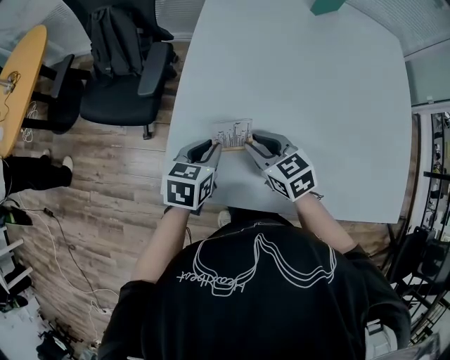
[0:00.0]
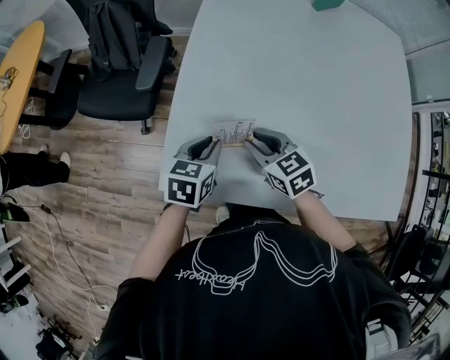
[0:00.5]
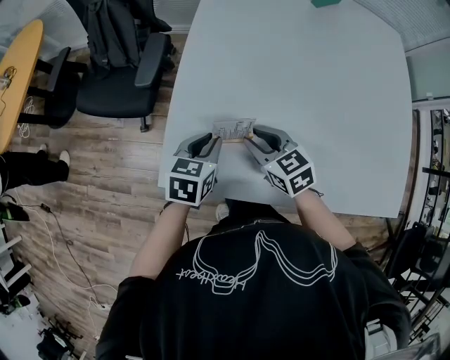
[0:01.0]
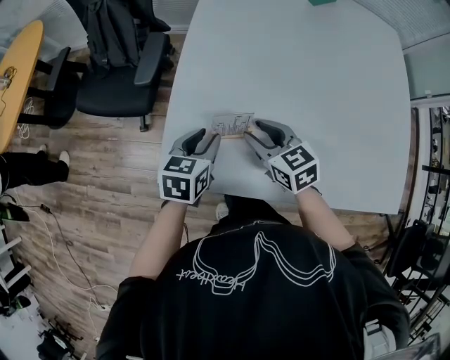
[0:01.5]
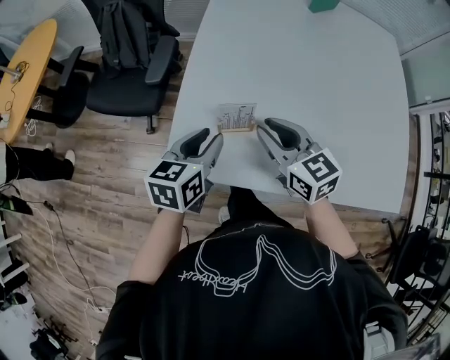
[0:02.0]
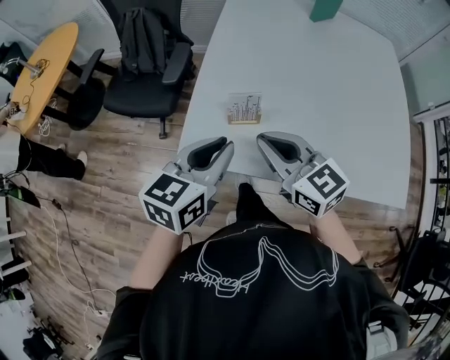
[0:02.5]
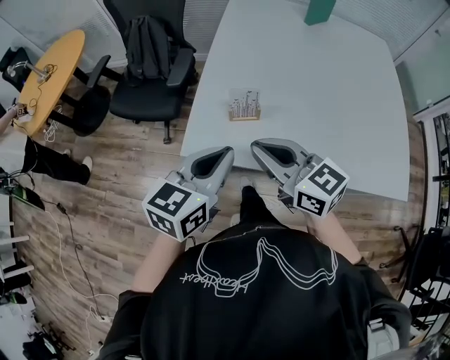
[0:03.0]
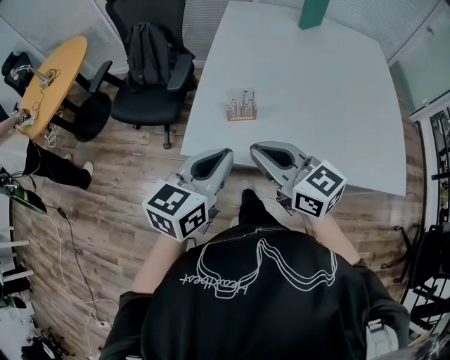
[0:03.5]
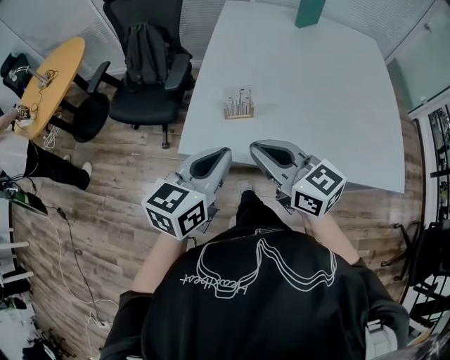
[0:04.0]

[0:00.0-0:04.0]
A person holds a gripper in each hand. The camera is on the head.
0:00.0 to 0:02.0: The two grippers go approximately 10 cm upward.
0:02.0 to 0:04.0: The grippers both shift backward and upward by approximately 20 cm. The left gripper closes, while the right gripper closes up.

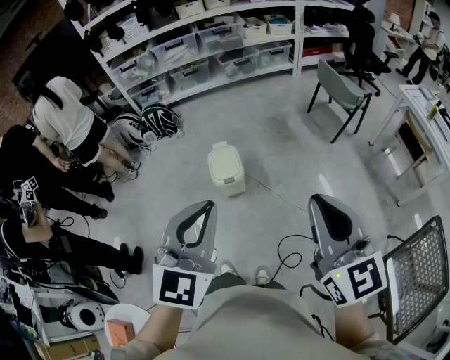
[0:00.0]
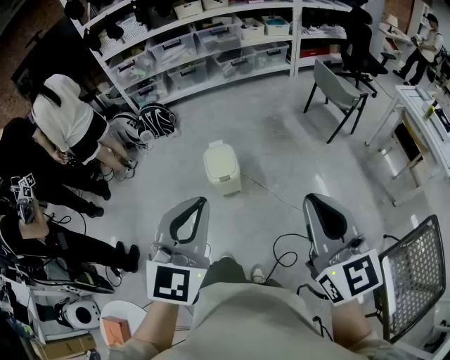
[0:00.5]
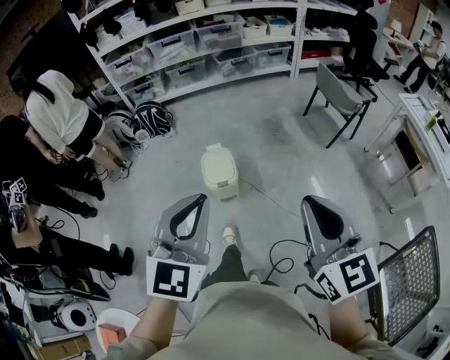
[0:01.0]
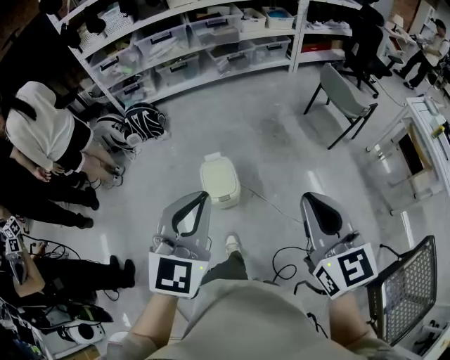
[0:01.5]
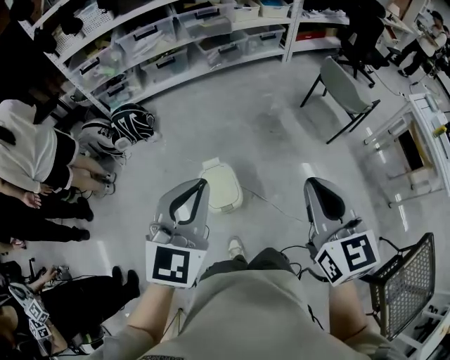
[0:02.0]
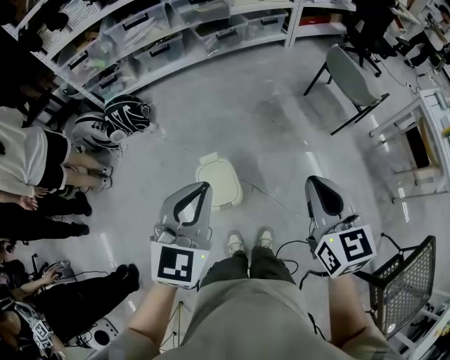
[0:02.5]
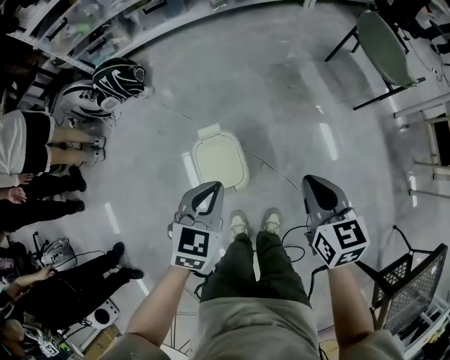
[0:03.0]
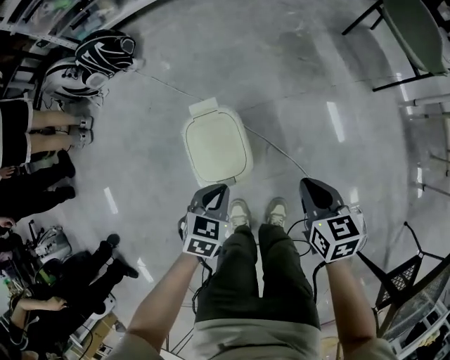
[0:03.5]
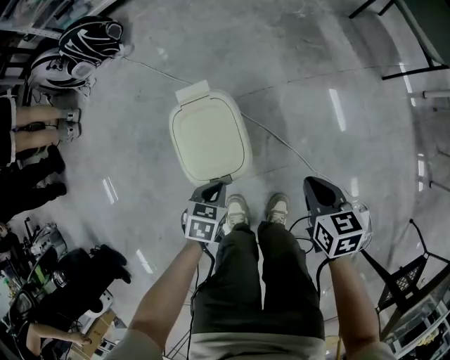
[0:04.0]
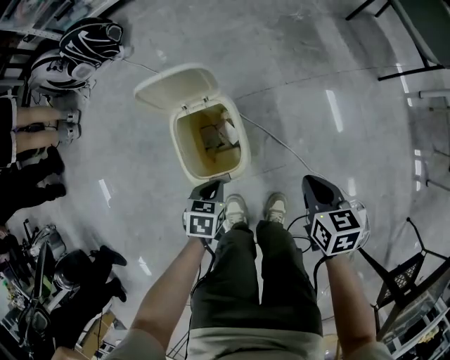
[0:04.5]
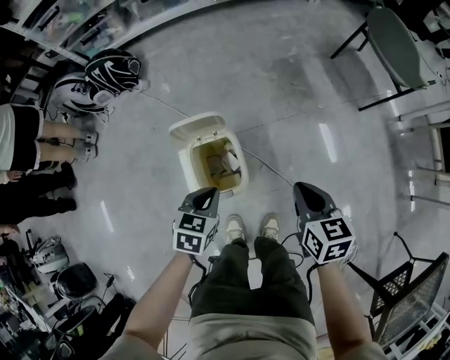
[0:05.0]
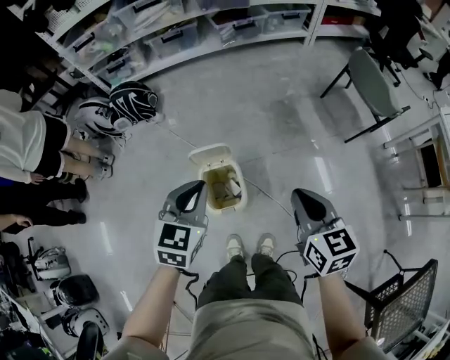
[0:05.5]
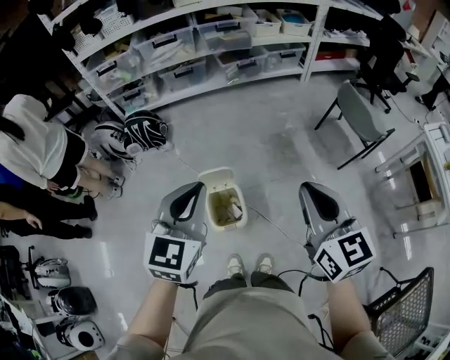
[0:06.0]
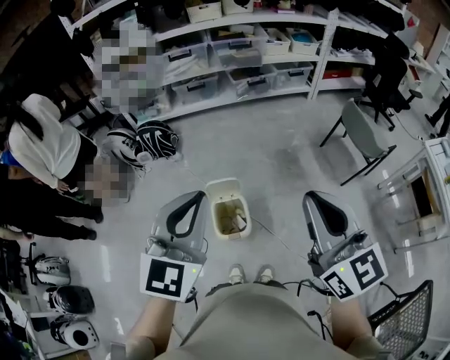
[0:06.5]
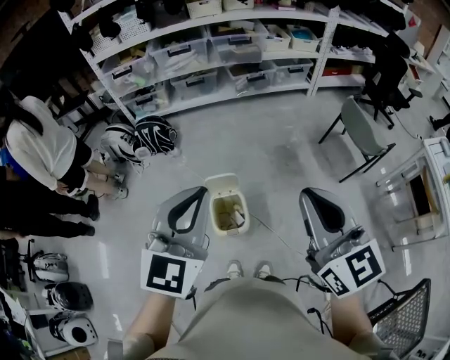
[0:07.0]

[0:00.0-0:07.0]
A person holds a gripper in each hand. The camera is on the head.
0:00.0 to 0:02.0: The two grippers go roughly 35 cm forward.
0:02.0 to 0:03.5: The two grippers go some 50 cm downward. The right gripper swivels some 40 degrees. Meanwhile the left gripper points its fingers approximately 40 degrees further downward.
0:03.5 to 0:05.0: The left gripper reaches some 15 cm downward, then returns; the right gripper goes approximately 10 cm upward.
0:05.0 to 0:07.0: The two grippers go roughly 50 cm upward. The left gripper points its fingers some 40 degrees further upward. Meanwhile the right gripper angles its fingers upward, by roughly 40 degrees.

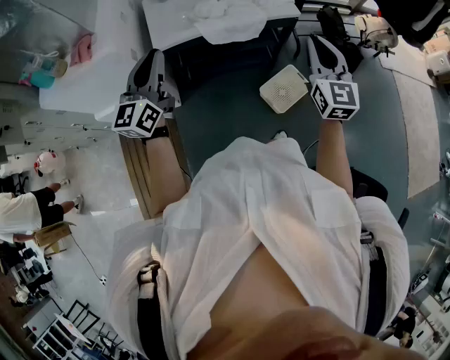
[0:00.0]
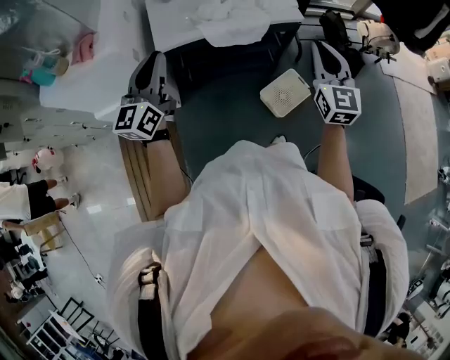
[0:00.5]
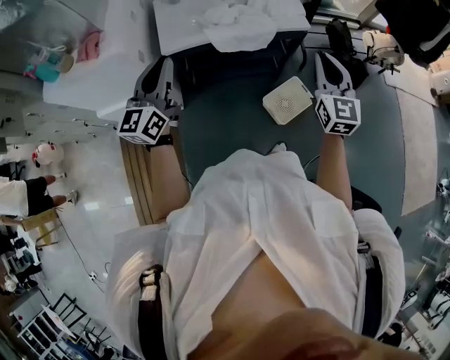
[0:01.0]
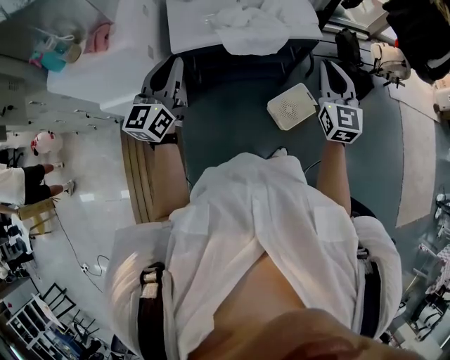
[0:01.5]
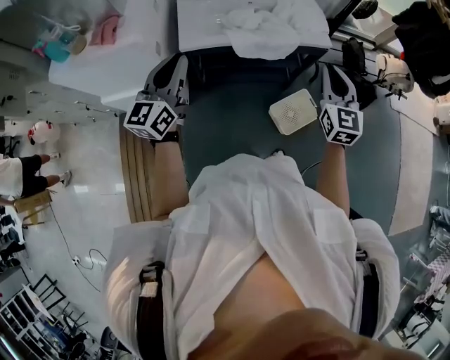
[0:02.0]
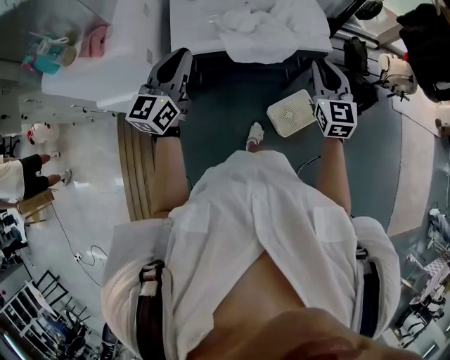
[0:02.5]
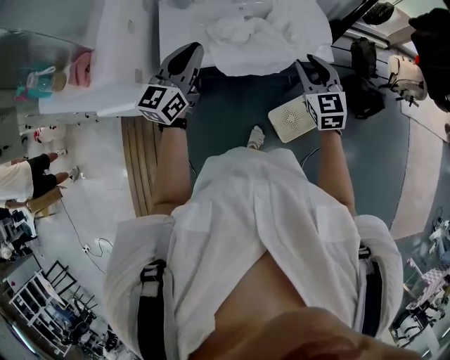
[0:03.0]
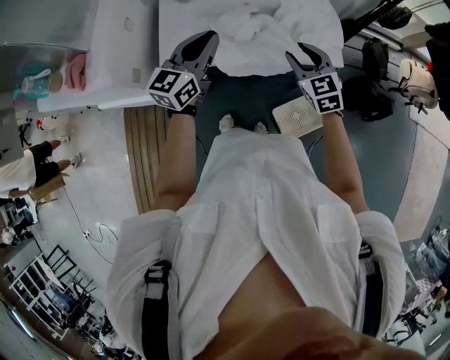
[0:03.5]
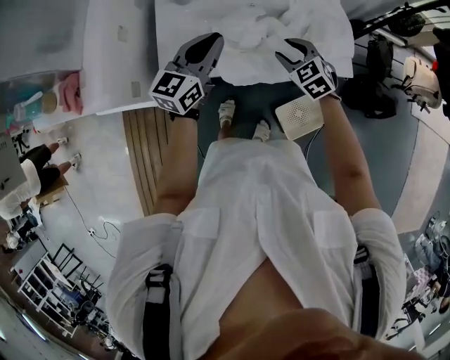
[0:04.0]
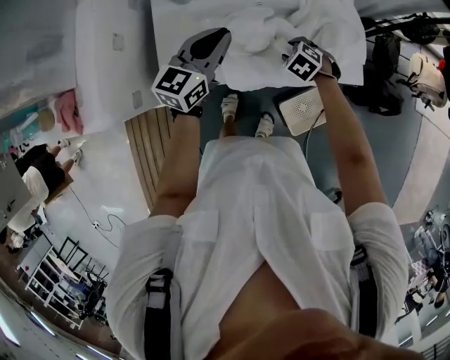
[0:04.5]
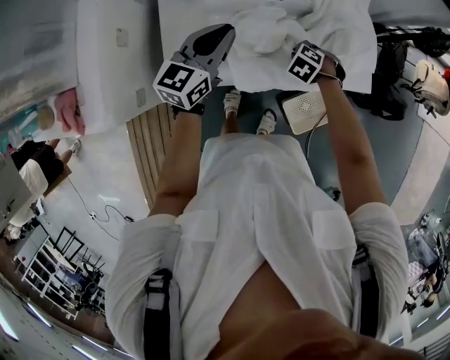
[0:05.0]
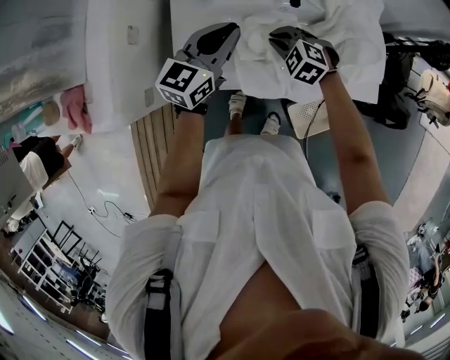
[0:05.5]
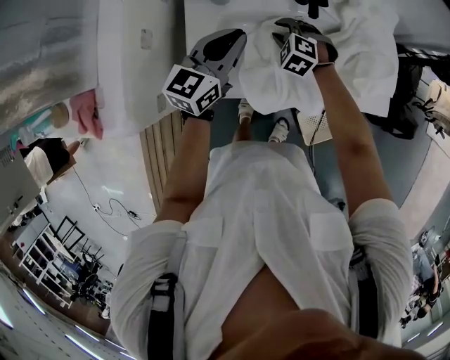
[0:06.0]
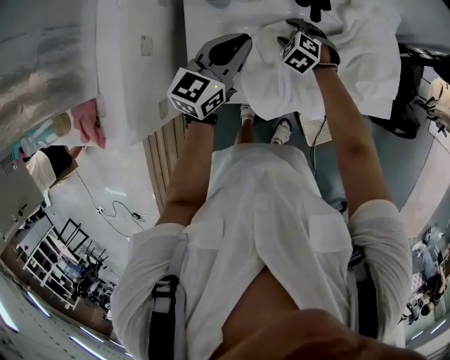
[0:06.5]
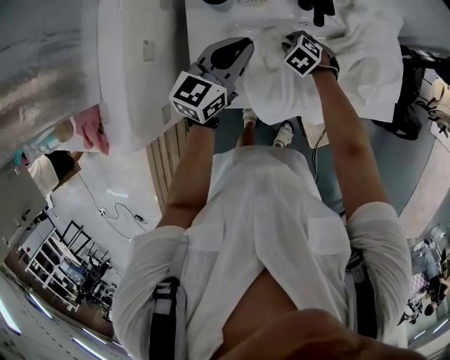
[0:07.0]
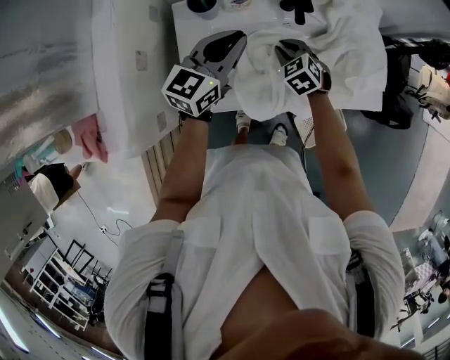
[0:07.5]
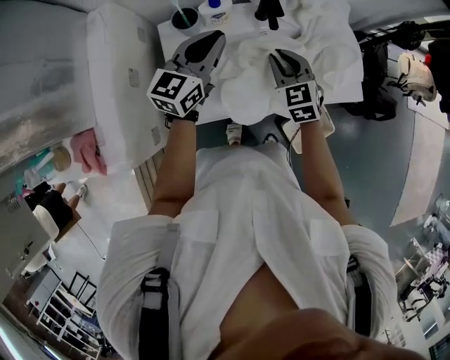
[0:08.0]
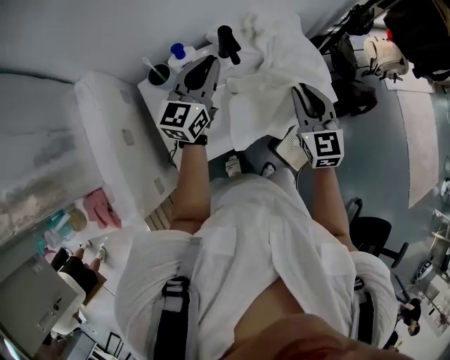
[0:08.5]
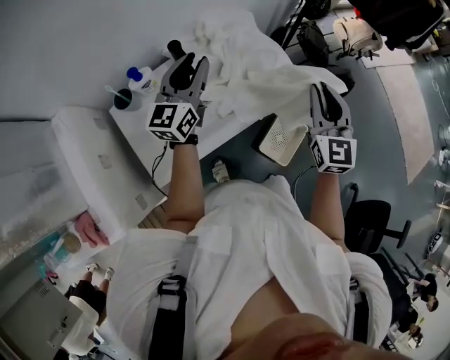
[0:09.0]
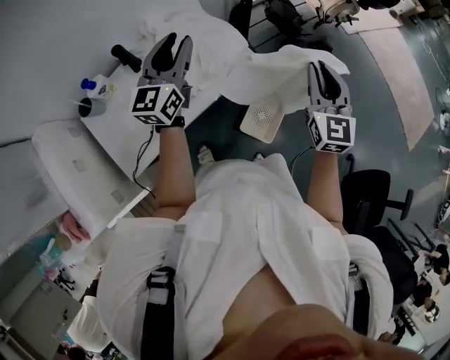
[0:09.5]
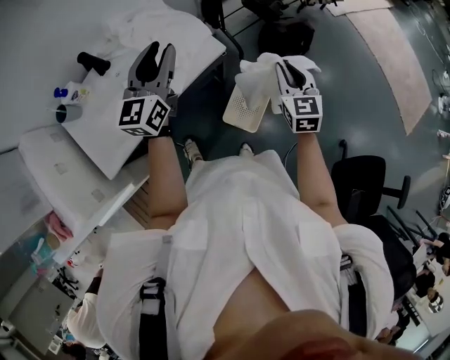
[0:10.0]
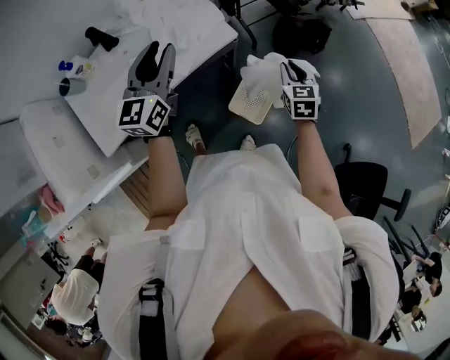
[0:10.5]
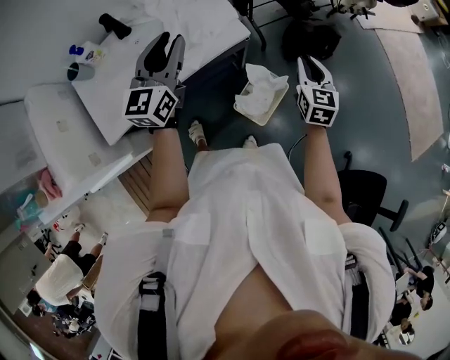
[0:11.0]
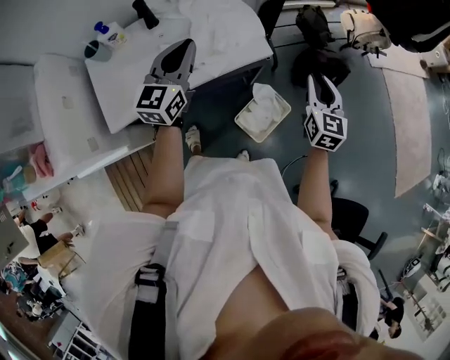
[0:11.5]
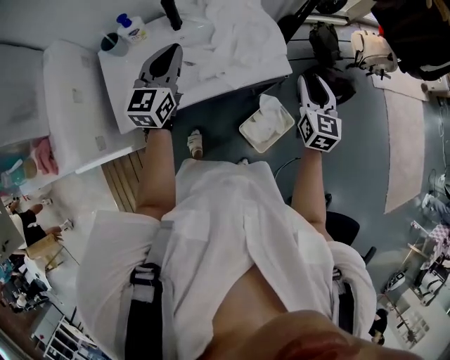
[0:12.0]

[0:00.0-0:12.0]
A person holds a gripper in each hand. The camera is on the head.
0:00.0 to 0:02.0: The right gripper moves forward, about 5 cm; the left gripper changes place by about 5 cm.
0:02.0 to 0:04.0: The right gripper shifts about 40 cm forward and downward, tips its fingers downward by roughly 40 degrees, and opens its fingers; the left gripper heads forward, covering roughly 30 cm.
0:04.0 to 0:06.0: The left gripper moves about 15 cm; the right gripper swings up and down, about 15 cm each way, with 2 reversals, swivels approximately 30 degrees, and closes, then reopens.
0:06.0 to 0:08.0: The right gripper moves upward and to the right, approximately 15 cm, turns by some 50 degrees, and opens, then closes again. The left gripper heads upward, covering approximately 5 cm.
0:08.0 to 0:10.0: Both grippers are carried some 50 cm. The left gripper opens its fingers. Meanwhile the right gripper rotates roughly 40 degrees.
0:10.0 to 0:12.0: The two grippers go roughly 20 cm to the left. The left gripper turns by roughly 20 degrees, and closes its fingers.

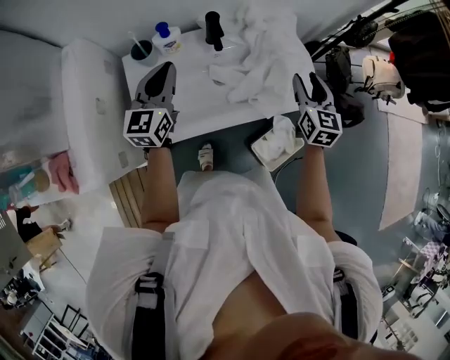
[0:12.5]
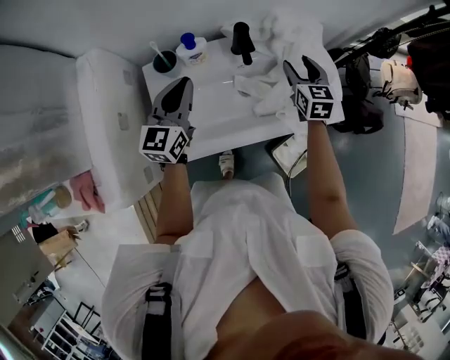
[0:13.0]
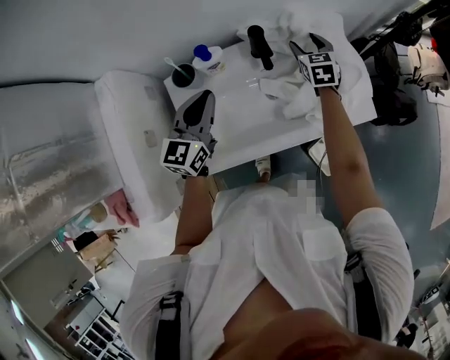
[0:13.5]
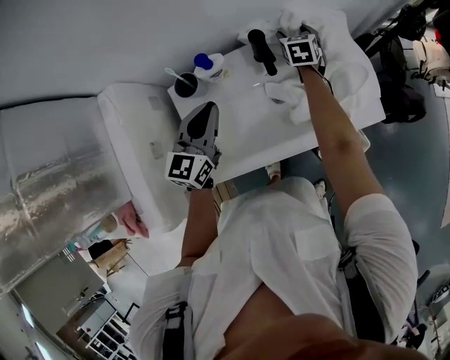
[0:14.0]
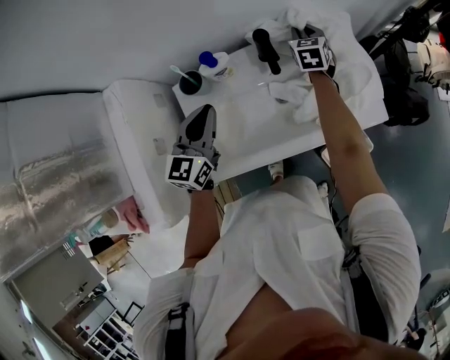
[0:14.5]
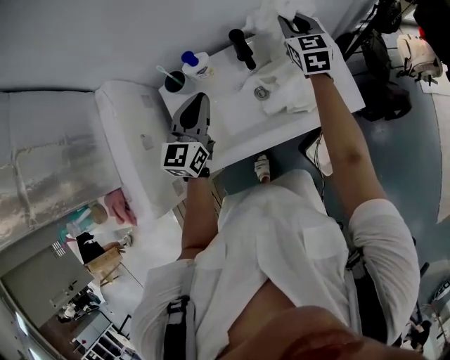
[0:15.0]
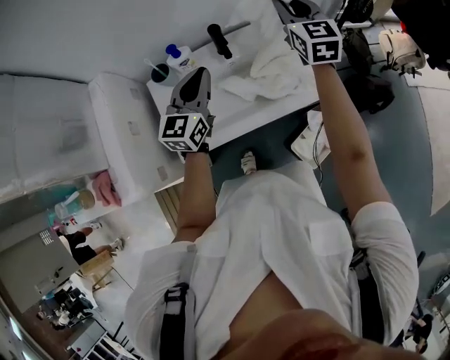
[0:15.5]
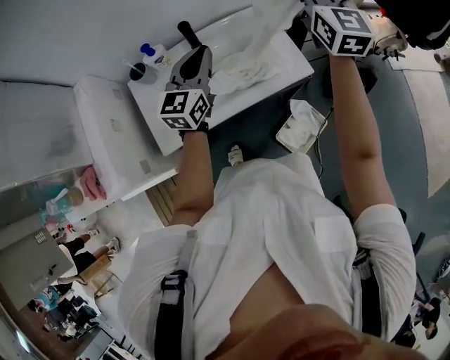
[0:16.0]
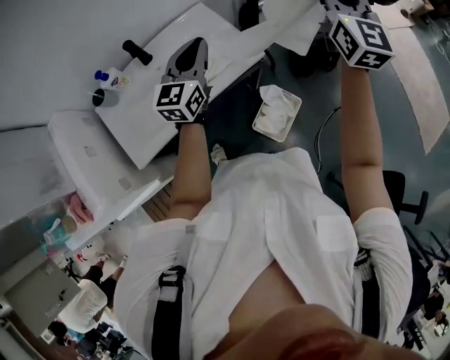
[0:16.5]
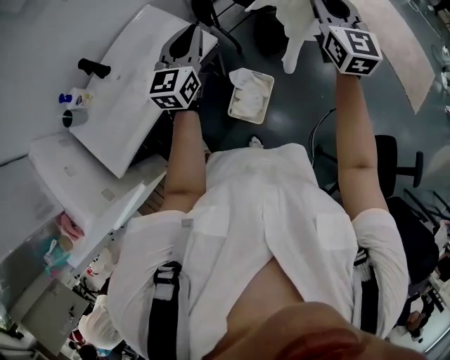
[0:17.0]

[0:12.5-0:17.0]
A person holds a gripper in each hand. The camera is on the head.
0:12.5 to 0:14.5: The right gripper shifts some 30 cm forward, to the left and downward, and closes its fingers. The left gripper heads to the left, covering approximately 5 cm.
0:14.5 to 0:17.0: The pair of grippers is taken roughly 60 cm. The left gripper turns by approximately 30 degrees; the right gripper tips its fingers upward by roughly 30 degrees.
